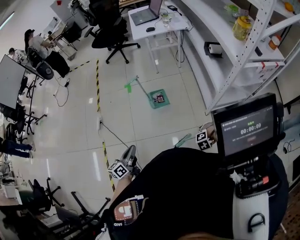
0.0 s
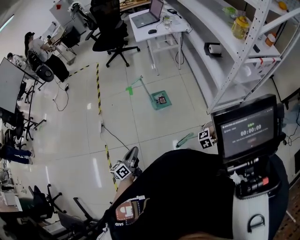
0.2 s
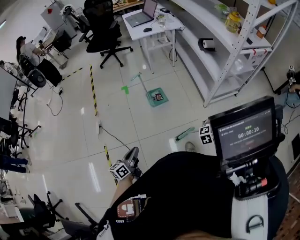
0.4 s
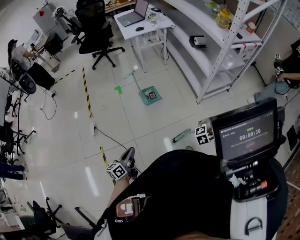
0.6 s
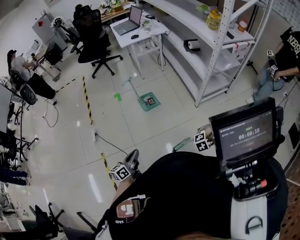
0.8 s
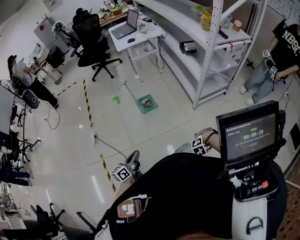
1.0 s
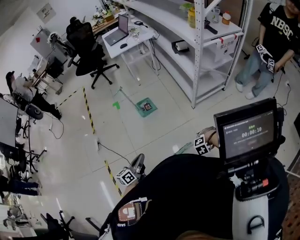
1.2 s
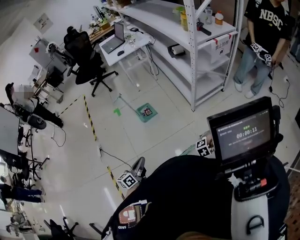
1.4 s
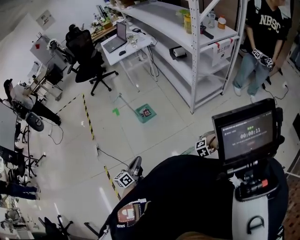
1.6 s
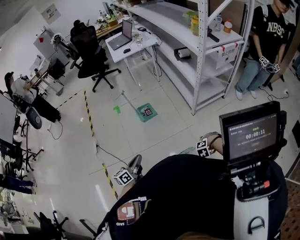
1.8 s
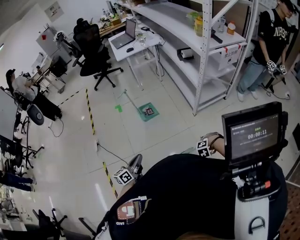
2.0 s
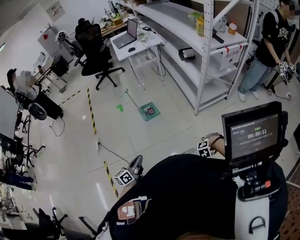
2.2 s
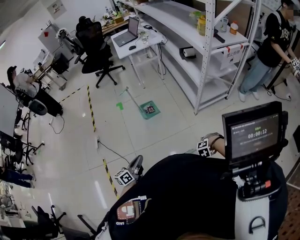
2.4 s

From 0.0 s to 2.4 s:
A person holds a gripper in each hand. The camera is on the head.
From 0.0 s to 1.2 s: The left gripper changes place by roughly 15 cm.

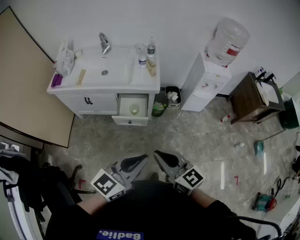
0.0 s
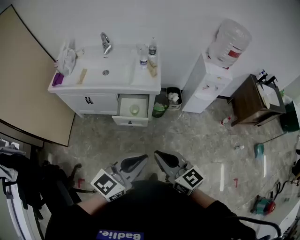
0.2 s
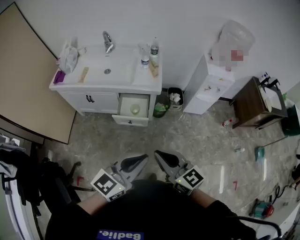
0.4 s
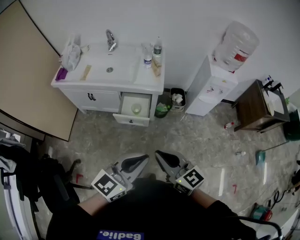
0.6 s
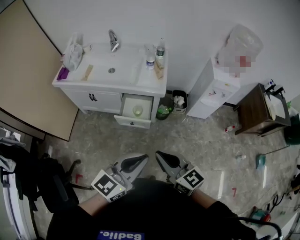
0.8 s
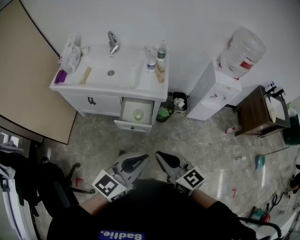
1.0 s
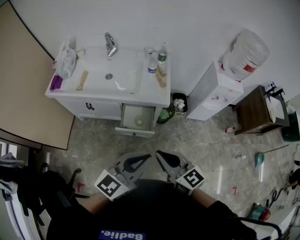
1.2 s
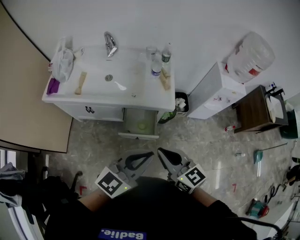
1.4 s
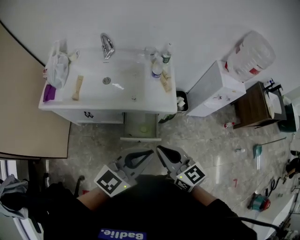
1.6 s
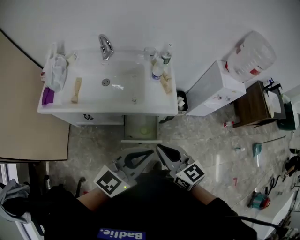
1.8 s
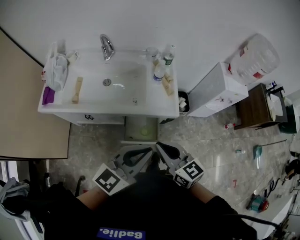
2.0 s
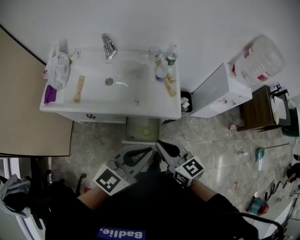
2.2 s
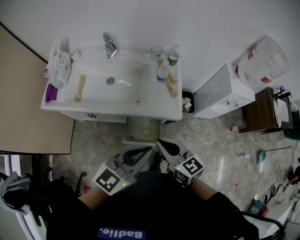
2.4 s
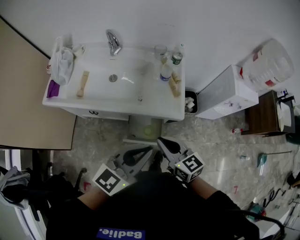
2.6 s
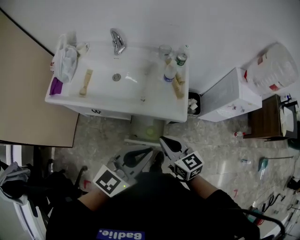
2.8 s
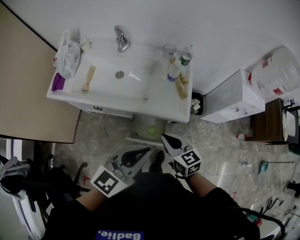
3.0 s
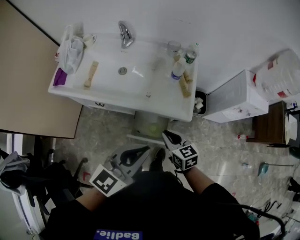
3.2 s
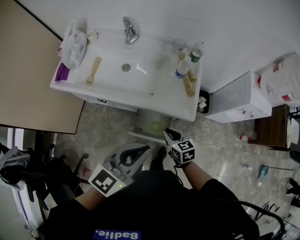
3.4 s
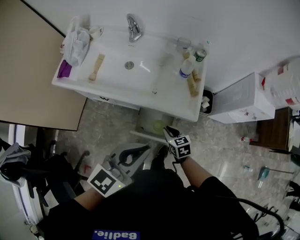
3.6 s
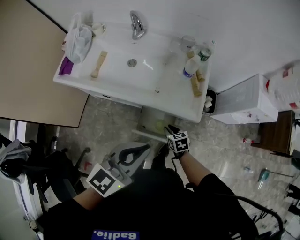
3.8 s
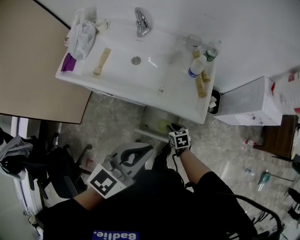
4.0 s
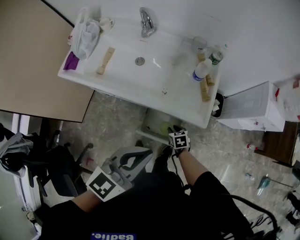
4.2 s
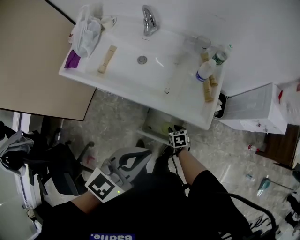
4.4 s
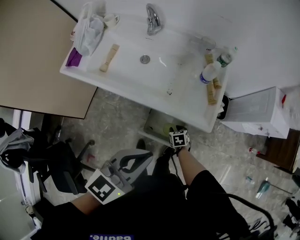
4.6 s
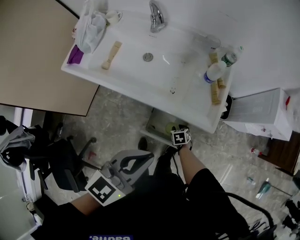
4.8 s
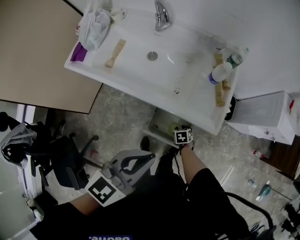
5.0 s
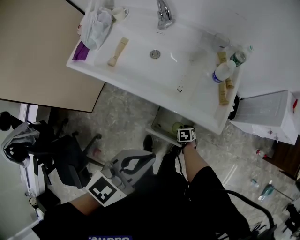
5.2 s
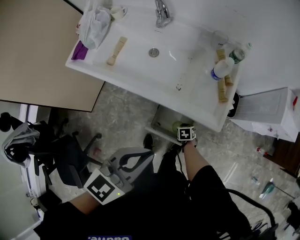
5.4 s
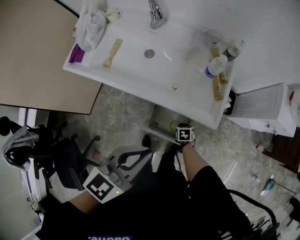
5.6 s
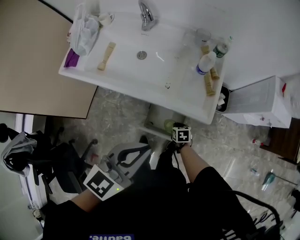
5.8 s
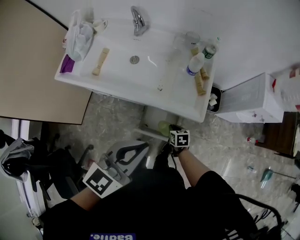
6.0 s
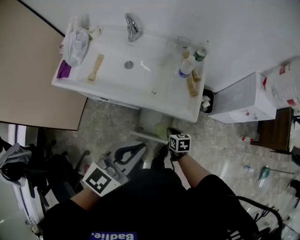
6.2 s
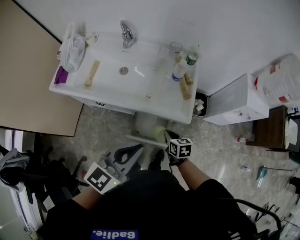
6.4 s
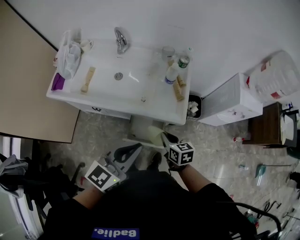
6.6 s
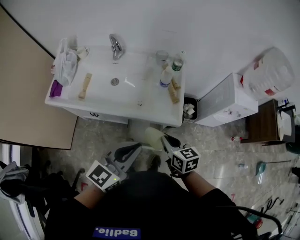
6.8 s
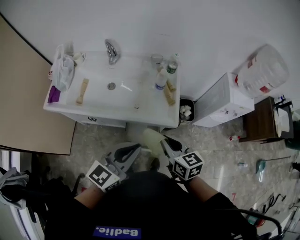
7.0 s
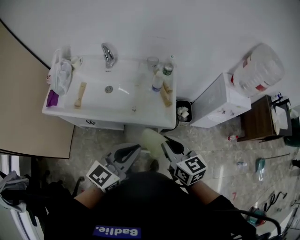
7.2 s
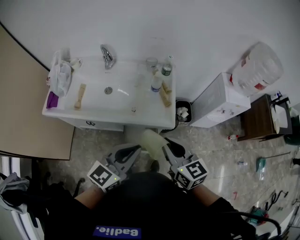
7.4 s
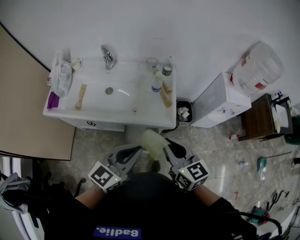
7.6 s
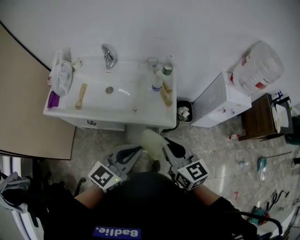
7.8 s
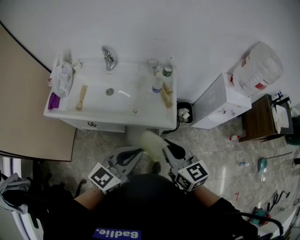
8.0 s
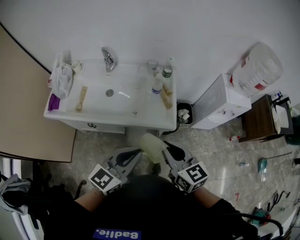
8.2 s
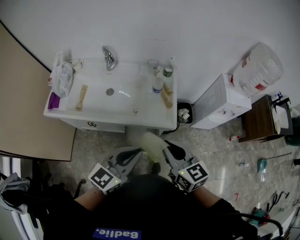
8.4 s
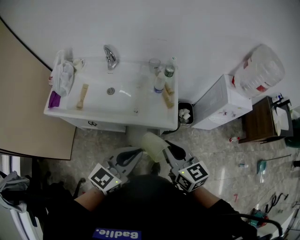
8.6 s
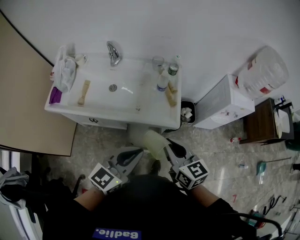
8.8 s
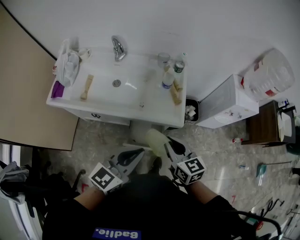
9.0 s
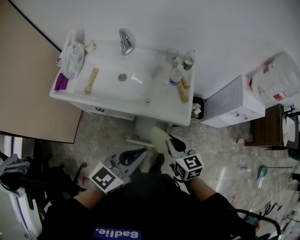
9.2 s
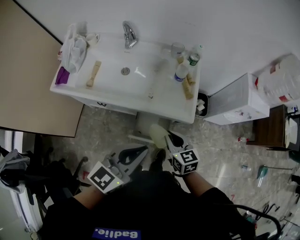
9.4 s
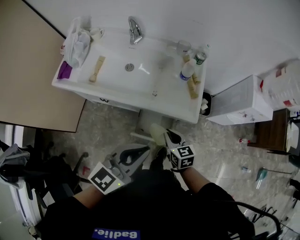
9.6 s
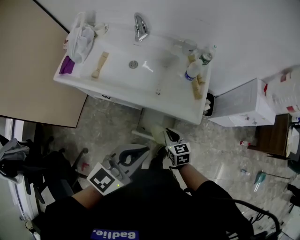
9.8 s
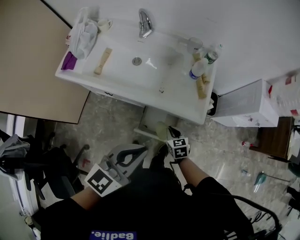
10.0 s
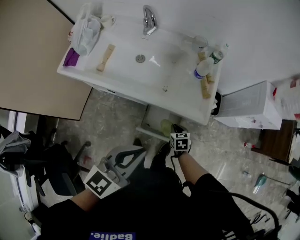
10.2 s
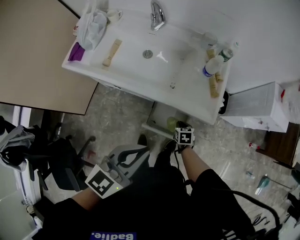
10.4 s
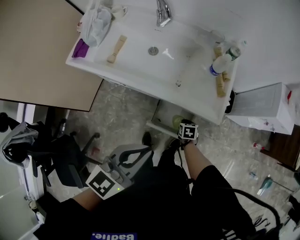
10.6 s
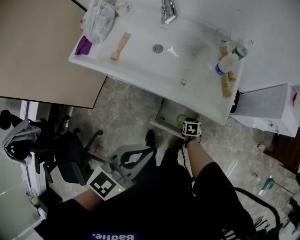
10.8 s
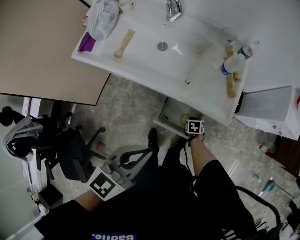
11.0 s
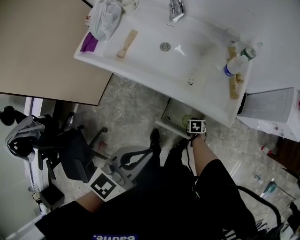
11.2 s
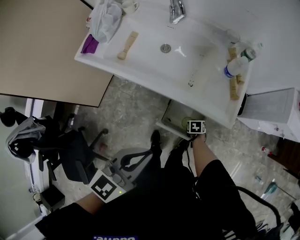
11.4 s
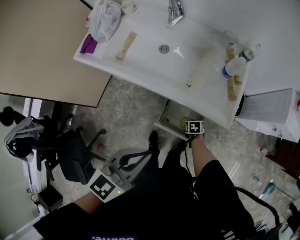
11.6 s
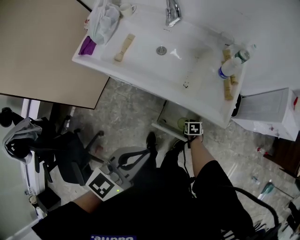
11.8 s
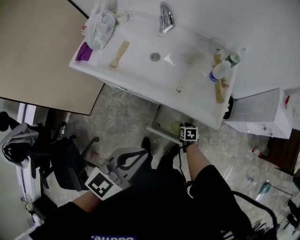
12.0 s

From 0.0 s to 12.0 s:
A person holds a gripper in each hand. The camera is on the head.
From 0.0 s to 1.6 s: Both grippers move forward and to the left, roughly 25 cm.
From 1.6 s to 3.0 s: The right gripper is displaced forward and downward by roughly 15 cm; the left gripper shifts roughly 10 cm forward.
From 3.0 s to 4.4 s: The left gripper moves approximately 5 cm. Meanwhile the right gripper heads downward, covering roughly 30 cm, tilts its fingers some 40 degrees downward, and opens.
From 4.4 s to 6.0 s: The right gripper closes its fingers.
From 6.0 s to 7.6 s: The left gripper moves approximately 5 cm; the right gripper travels upward by about 40 cm, and tips its fingers upward by about 40 degrees.
From 7.6 s to 9.0 s: The right gripper goes approximately 5 cm downward.
From 9.0 s to 10.4 s: The left gripper shifts some 5 cm to the left, while the right gripper is displaced downward by roughly 35 cm, and angles its fingers downward, by about 40 degrees.

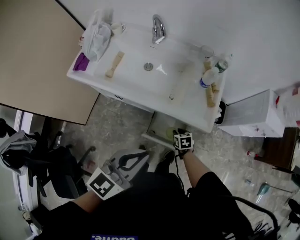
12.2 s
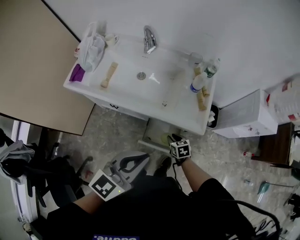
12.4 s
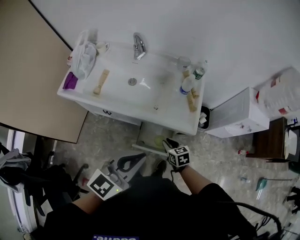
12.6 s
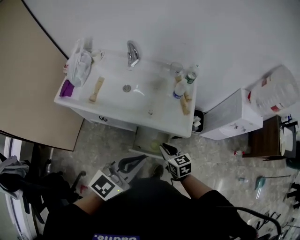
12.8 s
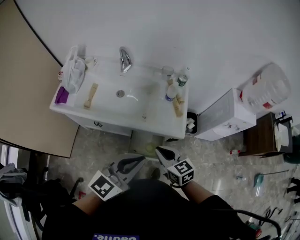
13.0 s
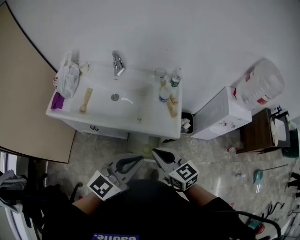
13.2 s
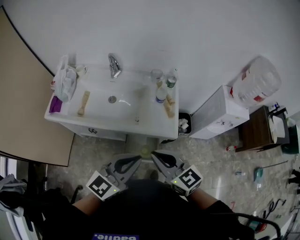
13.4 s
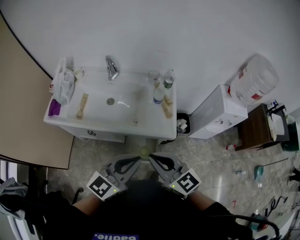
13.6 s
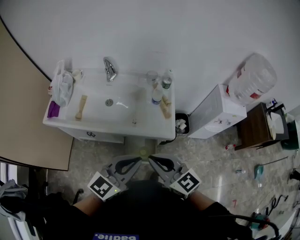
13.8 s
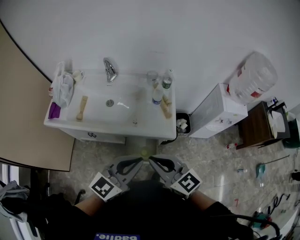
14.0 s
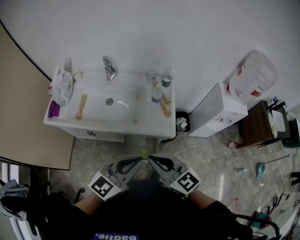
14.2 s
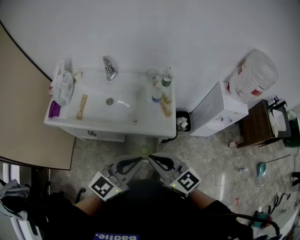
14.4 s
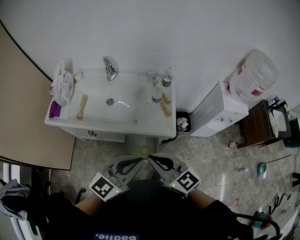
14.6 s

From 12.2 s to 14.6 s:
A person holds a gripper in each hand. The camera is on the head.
From 12.2 s to 13.4 s: The right gripper travels upward by approximately 40 cm, tips its fingers upward by some 50 degrees, and closes up; the left gripper moves upward and to the right, some 10 cm.
From 13.4 s to 14.6 s: The grippers make only small movements.

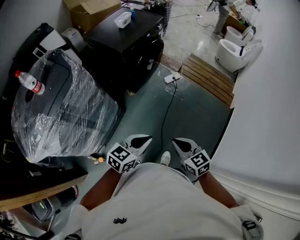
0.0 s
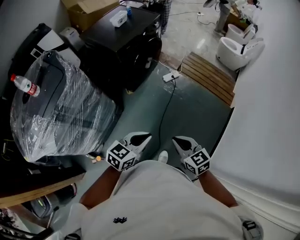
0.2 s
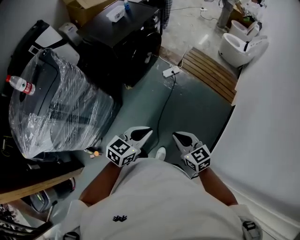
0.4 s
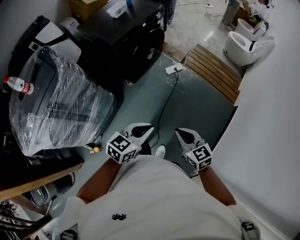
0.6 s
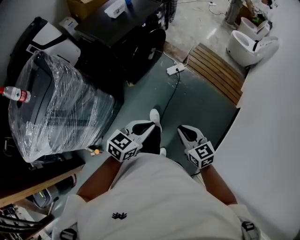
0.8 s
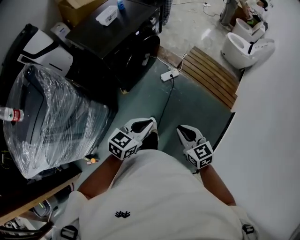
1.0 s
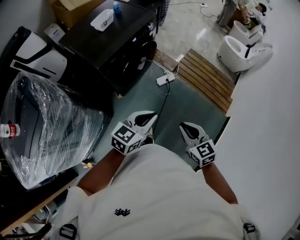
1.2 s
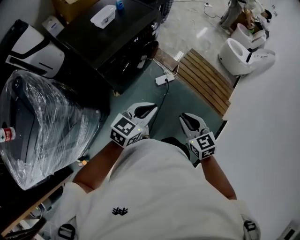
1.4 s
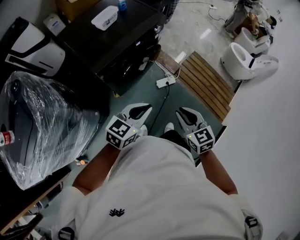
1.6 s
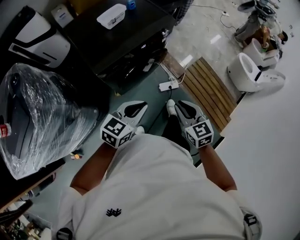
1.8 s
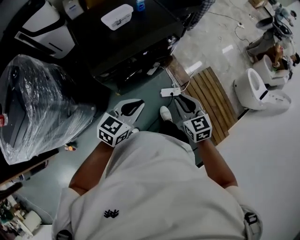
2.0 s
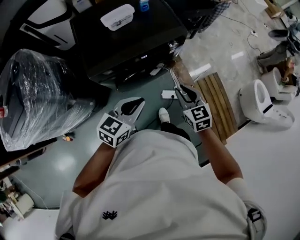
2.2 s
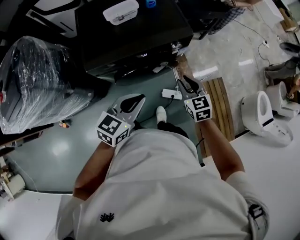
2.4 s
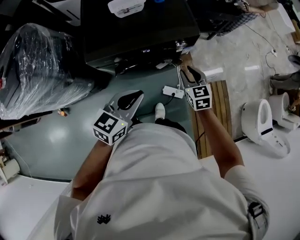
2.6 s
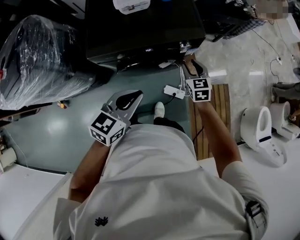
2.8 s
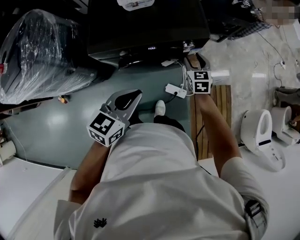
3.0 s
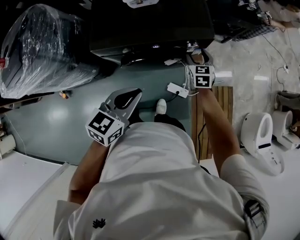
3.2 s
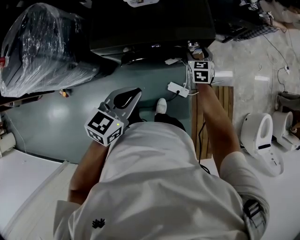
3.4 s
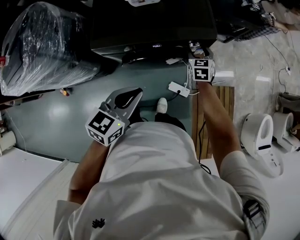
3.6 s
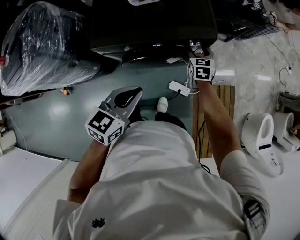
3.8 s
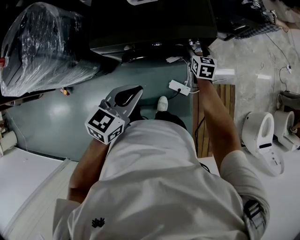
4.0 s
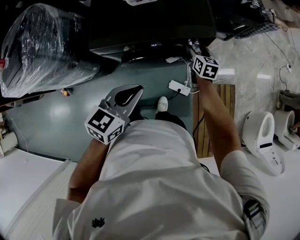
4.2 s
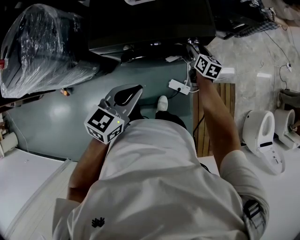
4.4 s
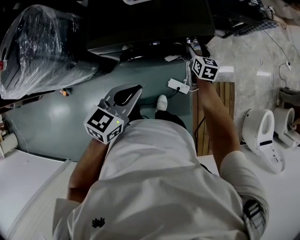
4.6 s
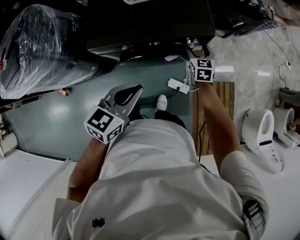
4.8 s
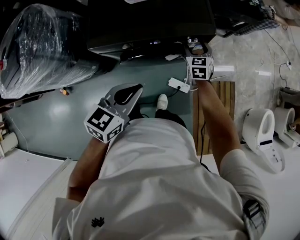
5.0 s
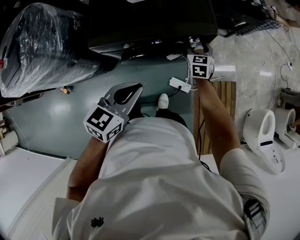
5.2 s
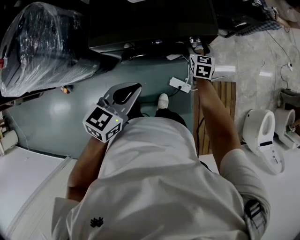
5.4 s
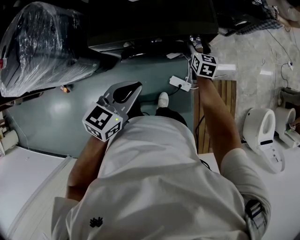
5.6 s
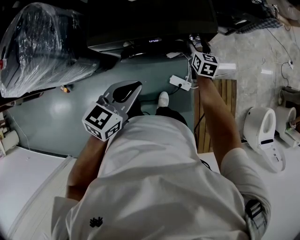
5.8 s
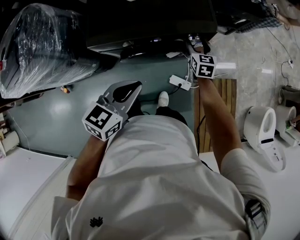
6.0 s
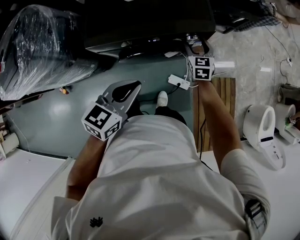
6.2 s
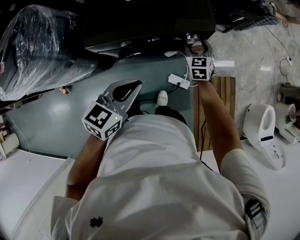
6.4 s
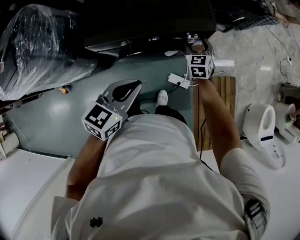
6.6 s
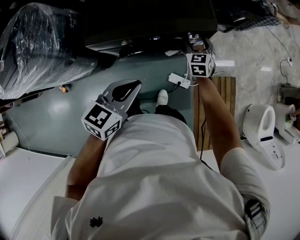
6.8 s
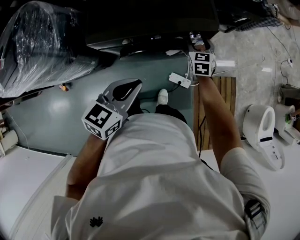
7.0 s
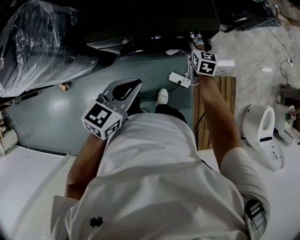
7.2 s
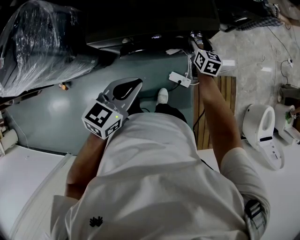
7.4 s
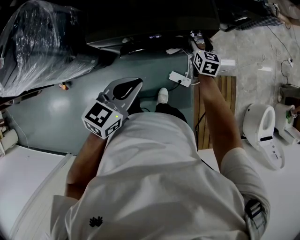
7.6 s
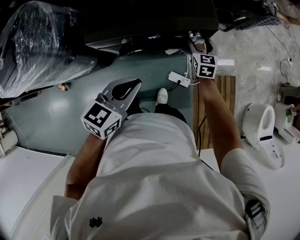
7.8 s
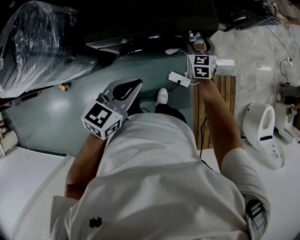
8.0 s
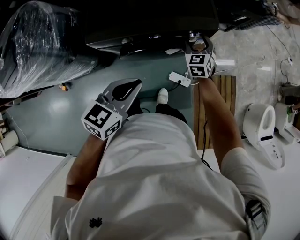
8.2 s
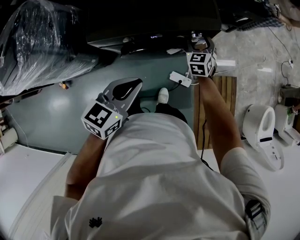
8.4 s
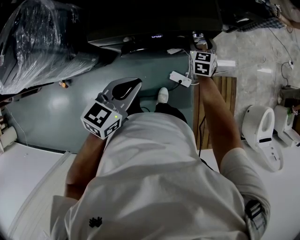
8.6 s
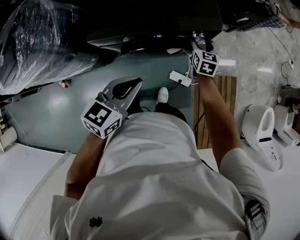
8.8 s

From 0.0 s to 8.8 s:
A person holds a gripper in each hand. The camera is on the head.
From 0.0 s to 1.4 s: The pair of grippers is taken forward, approximately 40 cm.
From 1.4 s to 3.0 s: The right gripper changes place by approximately 60 cm, rotates roughly 30 degrees, and opens; the left gripper changes place by about 25 cm, and swivels approximately 50 degrees.
From 3.0 s to 4.4 s: The right gripper travels forward by roughly 5 cm, and changes its angle by some 30 degrees.
